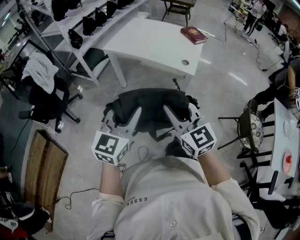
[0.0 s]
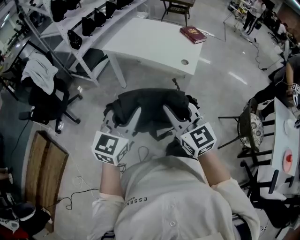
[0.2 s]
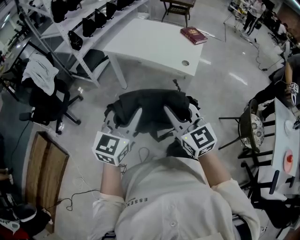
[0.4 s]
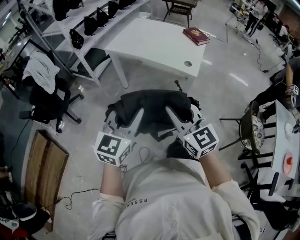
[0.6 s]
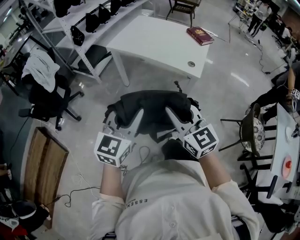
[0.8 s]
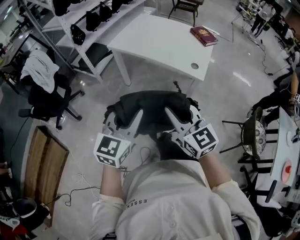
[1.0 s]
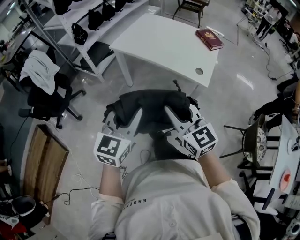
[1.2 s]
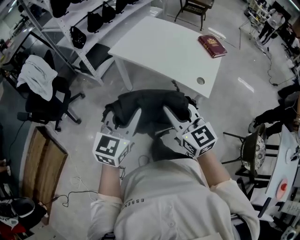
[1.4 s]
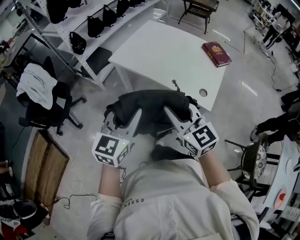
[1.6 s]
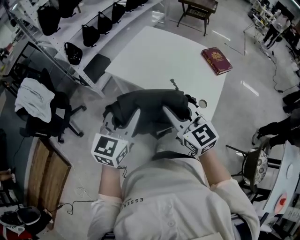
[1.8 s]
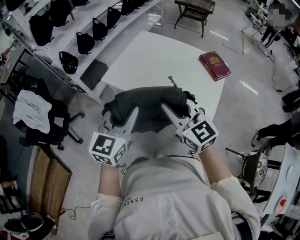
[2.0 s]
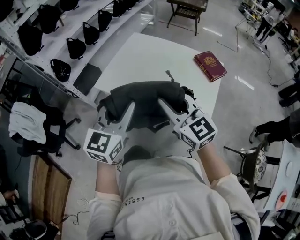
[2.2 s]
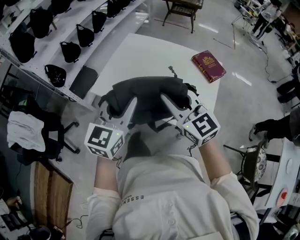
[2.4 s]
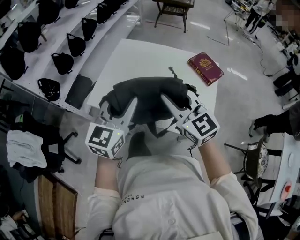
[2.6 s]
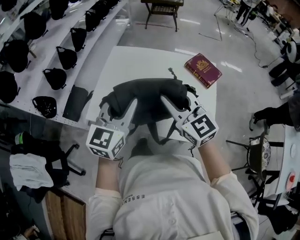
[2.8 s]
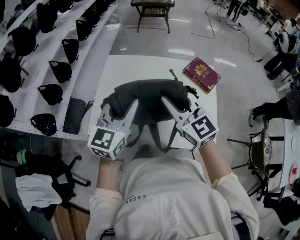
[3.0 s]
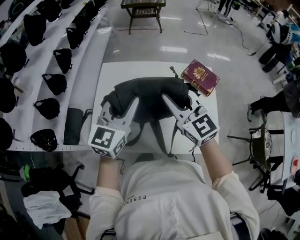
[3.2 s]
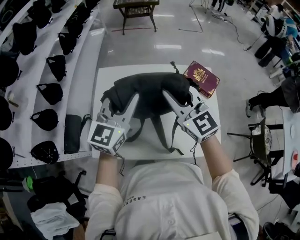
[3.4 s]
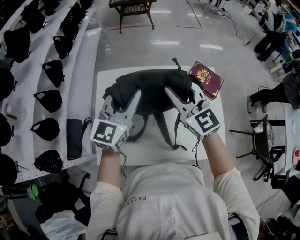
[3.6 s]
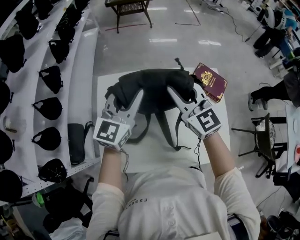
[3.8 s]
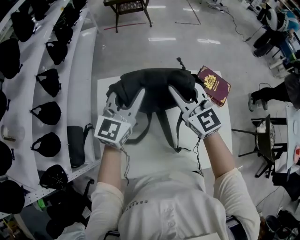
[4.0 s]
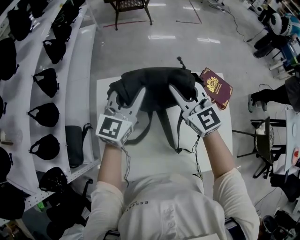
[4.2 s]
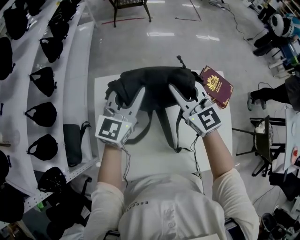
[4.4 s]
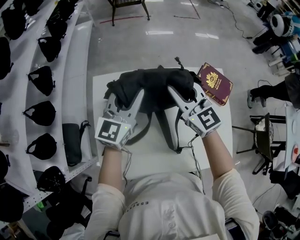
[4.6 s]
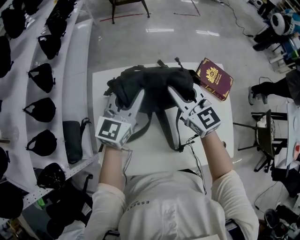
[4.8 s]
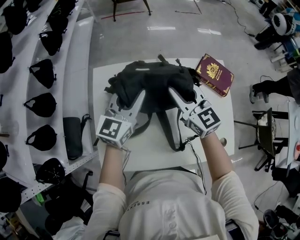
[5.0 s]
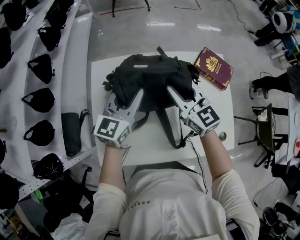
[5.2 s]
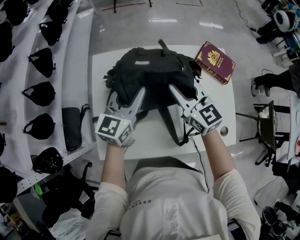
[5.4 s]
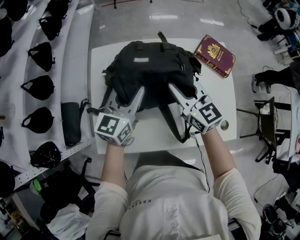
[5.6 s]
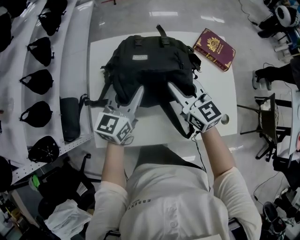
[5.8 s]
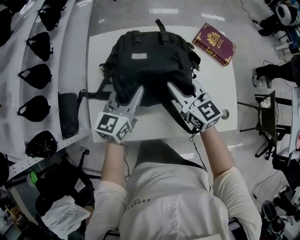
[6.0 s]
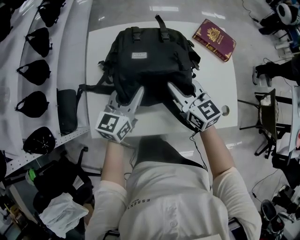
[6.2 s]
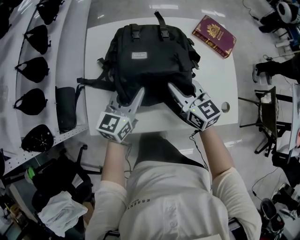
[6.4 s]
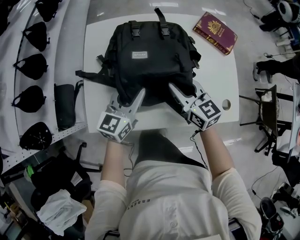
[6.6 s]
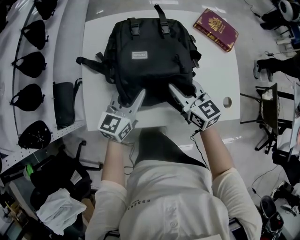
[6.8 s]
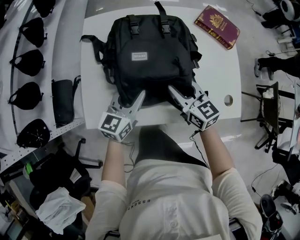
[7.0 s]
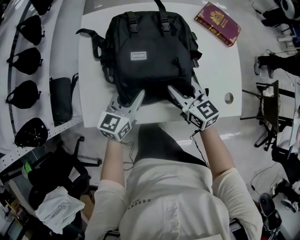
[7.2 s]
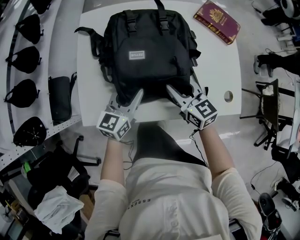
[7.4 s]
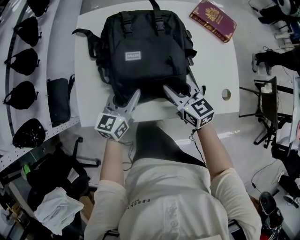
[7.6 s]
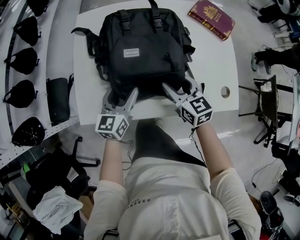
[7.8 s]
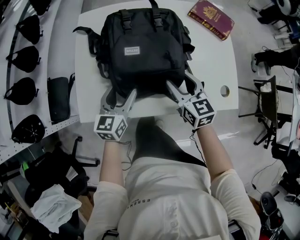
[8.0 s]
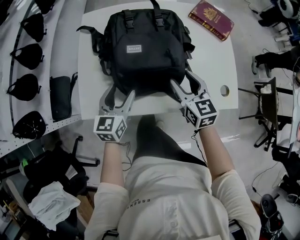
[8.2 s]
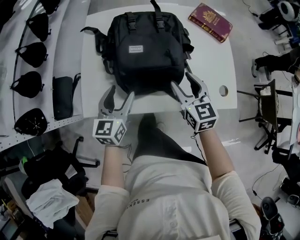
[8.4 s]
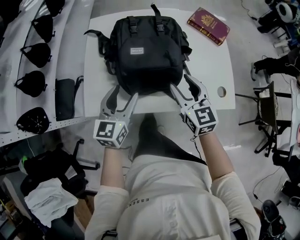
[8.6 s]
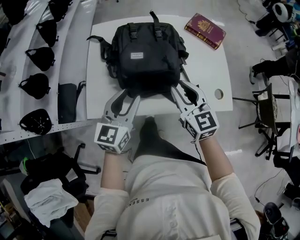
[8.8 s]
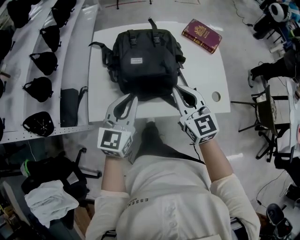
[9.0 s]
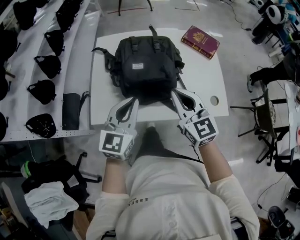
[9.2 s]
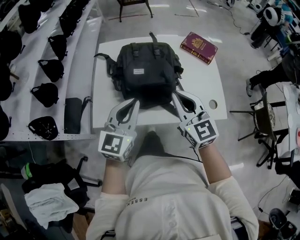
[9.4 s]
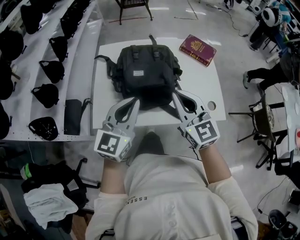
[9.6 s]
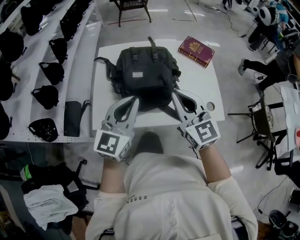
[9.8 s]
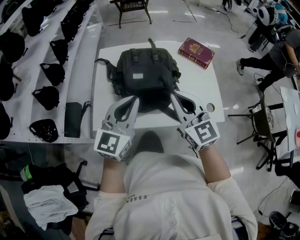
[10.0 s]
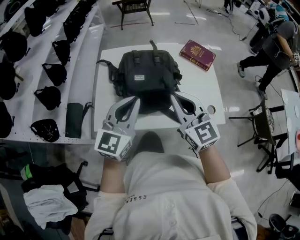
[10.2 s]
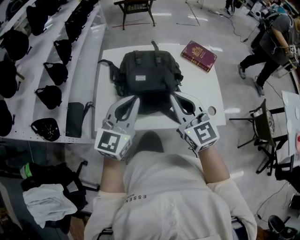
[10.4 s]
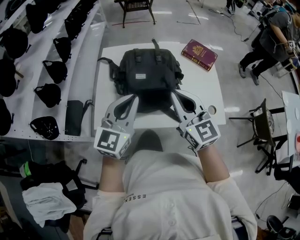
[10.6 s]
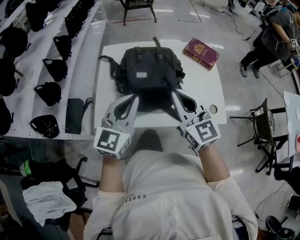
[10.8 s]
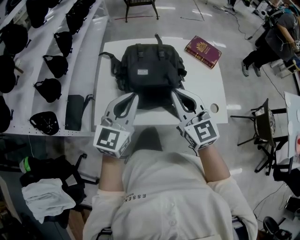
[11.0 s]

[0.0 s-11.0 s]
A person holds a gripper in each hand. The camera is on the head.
0.0 to 1.6 s: The two grippers go about 25 cm forward.
1.6 to 3.2 s: Both grippers are carried approximately 50 cm. The left gripper changes its angle by about 30 degrees, while the right gripper rotates roughly 30 degrees.
3.2 to 4.8 s: Both grippers travel together forward and downward, approximately 20 cm.
4.8 to 6.2 s: Both grippers travel together backward and downward, approximately 20 cm.
6.2 to 7.8 s: Both grippers move downward and backward, roughly 10 cm. The left gripper opens its fingers. The right gripper opens its fingers.
7.8 to 9.4 s: Both grippers move upward and backward, some 20 cm. The right gripper turns by approximately 20 degrees, and closes up. Meanwhile the left gripper swivels about 20 degrees, and closes up.
9.4 to 11.0 s: The grippers stay close to where they were, moving slightly.

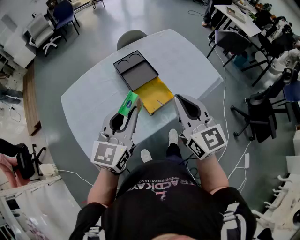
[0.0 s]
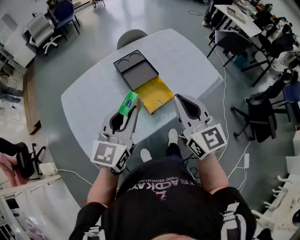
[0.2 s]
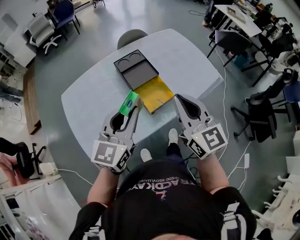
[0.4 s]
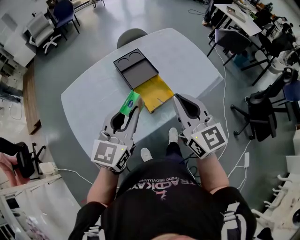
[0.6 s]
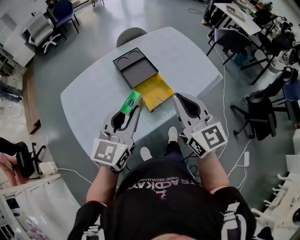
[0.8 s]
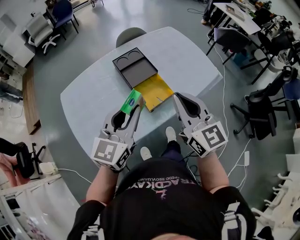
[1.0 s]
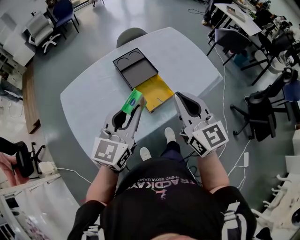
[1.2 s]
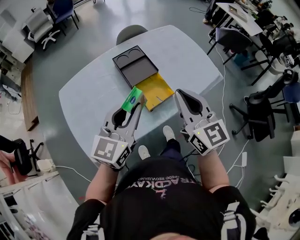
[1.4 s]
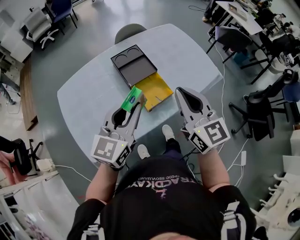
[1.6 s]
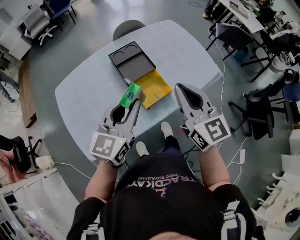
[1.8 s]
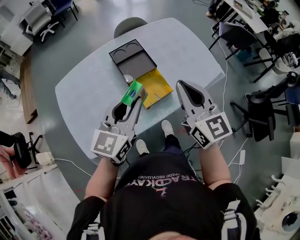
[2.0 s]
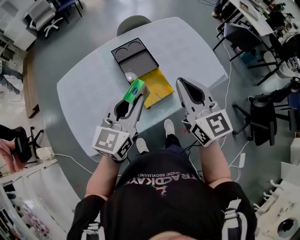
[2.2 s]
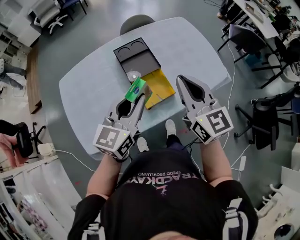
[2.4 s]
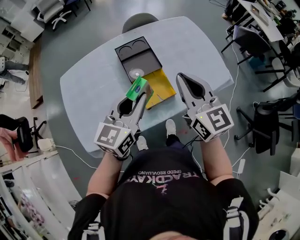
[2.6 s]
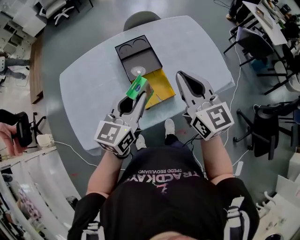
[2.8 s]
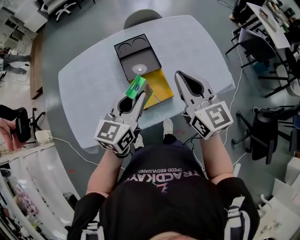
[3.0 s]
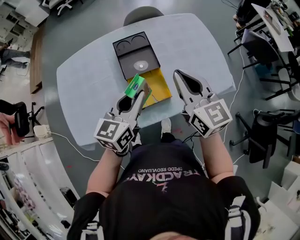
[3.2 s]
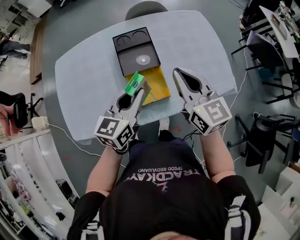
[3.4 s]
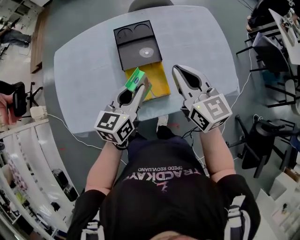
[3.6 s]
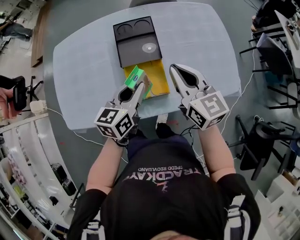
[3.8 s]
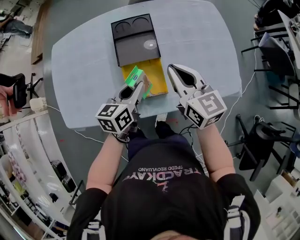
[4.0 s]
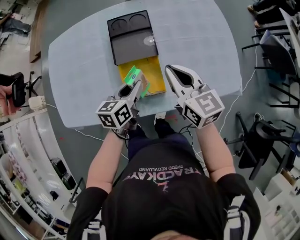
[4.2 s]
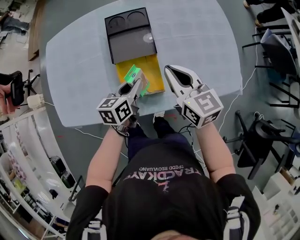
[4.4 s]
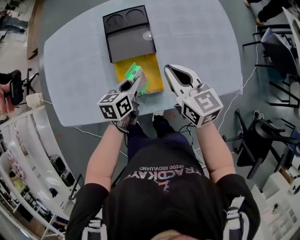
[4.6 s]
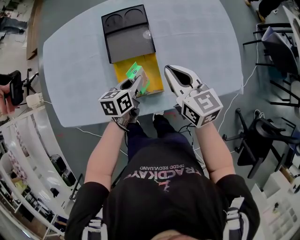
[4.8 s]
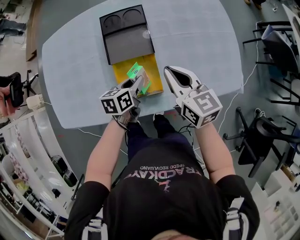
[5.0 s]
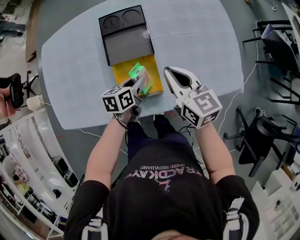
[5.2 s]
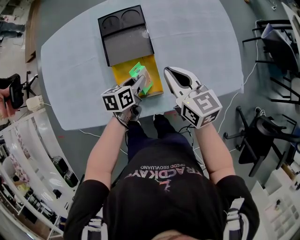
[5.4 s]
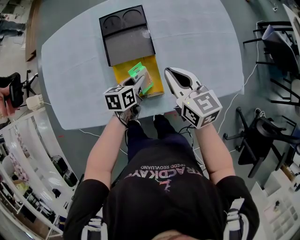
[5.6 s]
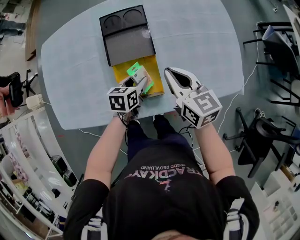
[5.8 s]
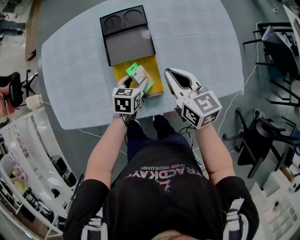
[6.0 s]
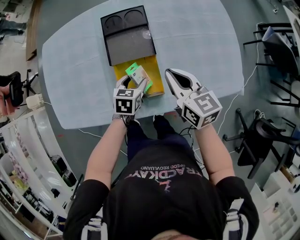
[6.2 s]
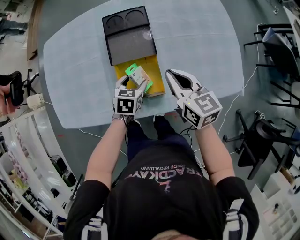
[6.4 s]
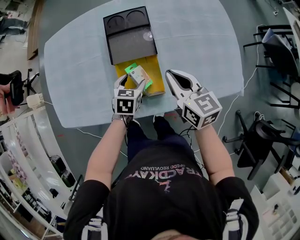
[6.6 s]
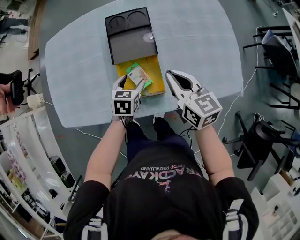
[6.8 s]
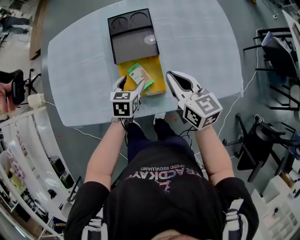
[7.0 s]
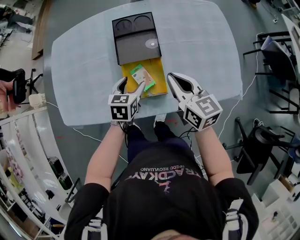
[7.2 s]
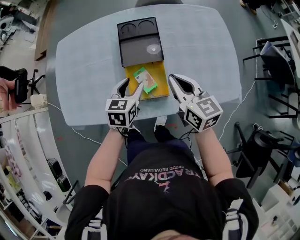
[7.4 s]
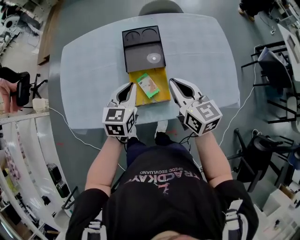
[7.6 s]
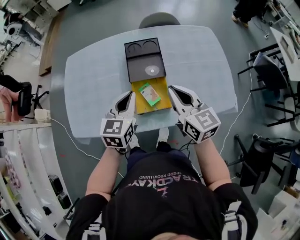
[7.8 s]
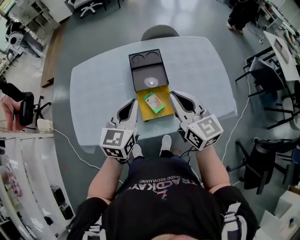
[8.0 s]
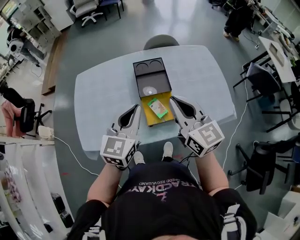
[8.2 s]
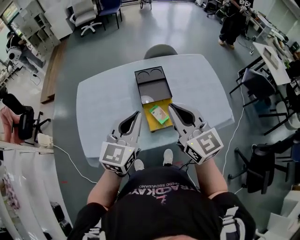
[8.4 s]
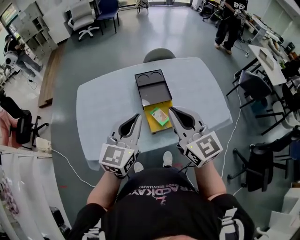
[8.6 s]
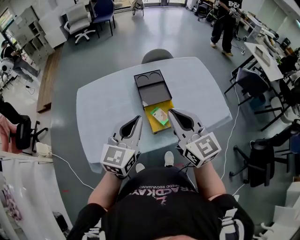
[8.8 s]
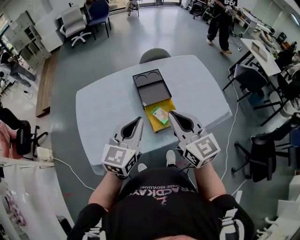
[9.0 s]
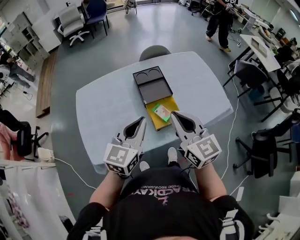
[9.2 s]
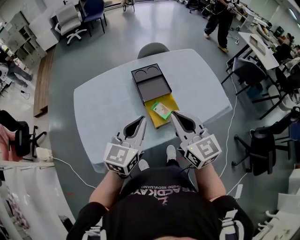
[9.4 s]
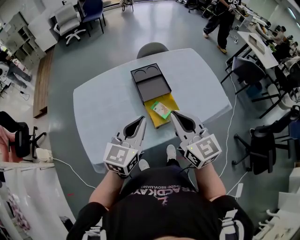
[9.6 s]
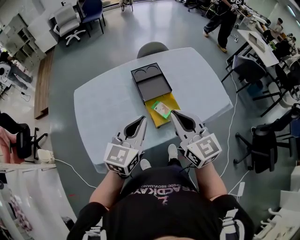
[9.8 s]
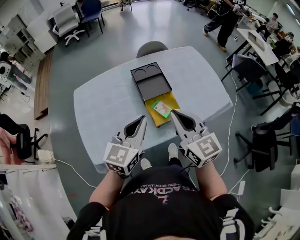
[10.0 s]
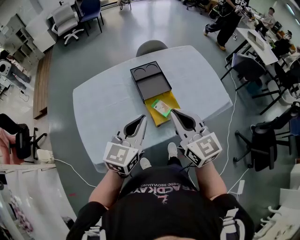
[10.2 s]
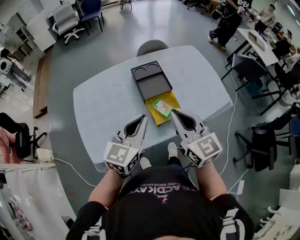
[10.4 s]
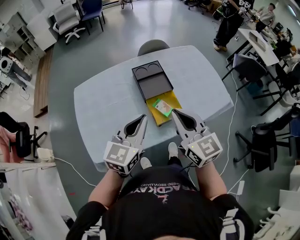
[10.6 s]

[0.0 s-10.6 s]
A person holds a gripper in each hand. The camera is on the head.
0.0 to 1.6 s: The grippers make only small movements.
1.6 to 3.0 s: The right gripper goes approximately 10 cm forward. The left gripper shifts about 10 cm forward, to the right and downward.
3.0 to 4.6 s: The right gripper is displaced downward and forward by approximately 20 cm, and changes its angle by approximately 20 degrees. The left gripper heads downward, covering about 25 cm, and rotates approximately 40 degrees.
4.6 to 6.0 s: The left gripper is displaced downward by about 5 cm, rotates approximately 20 degrees, and opens.
6.0 to 7.6 s: The left gripper shifts approximately 20 cm upward, turns by approximately 20 degrees, and closes, while the right gripper moves upward, about 10 cm.
7.6 to 9.0 s: The left gripper shifts approximately 25 cm upward, backward and to the left, and swivels approximately 30 degrees. Meanwhile the right gripper is displaced upward, to the left and backward by about 25 cm, and swivels about 20 degrees.
9.0 to 10.6 s: The grippers move only a little.

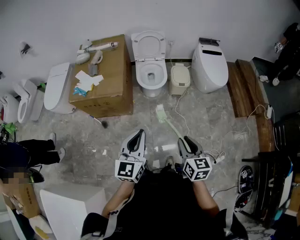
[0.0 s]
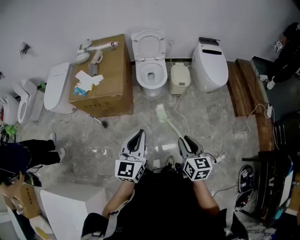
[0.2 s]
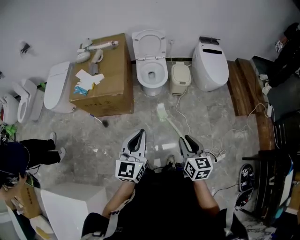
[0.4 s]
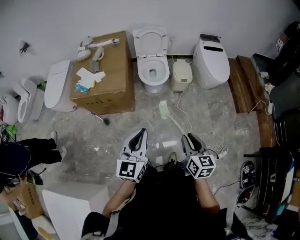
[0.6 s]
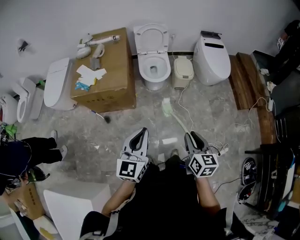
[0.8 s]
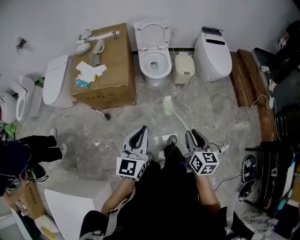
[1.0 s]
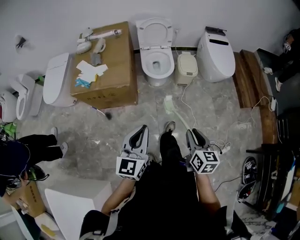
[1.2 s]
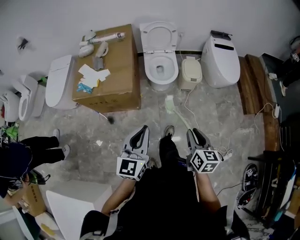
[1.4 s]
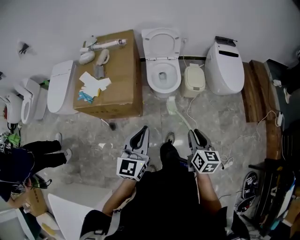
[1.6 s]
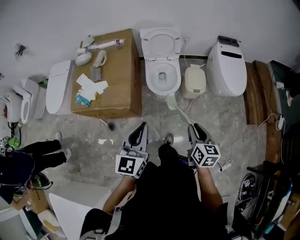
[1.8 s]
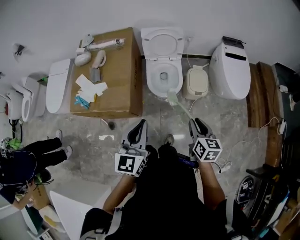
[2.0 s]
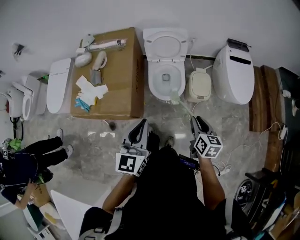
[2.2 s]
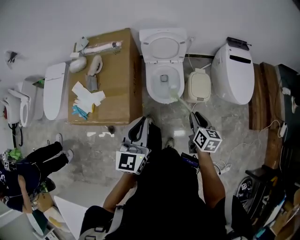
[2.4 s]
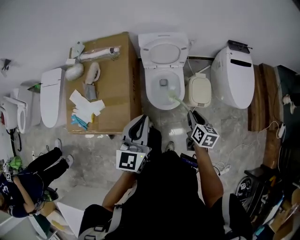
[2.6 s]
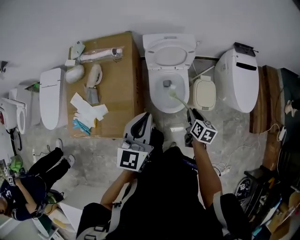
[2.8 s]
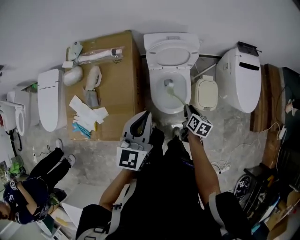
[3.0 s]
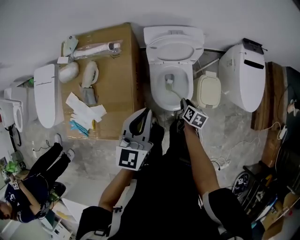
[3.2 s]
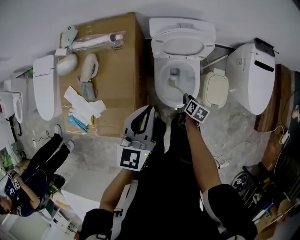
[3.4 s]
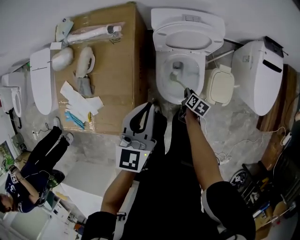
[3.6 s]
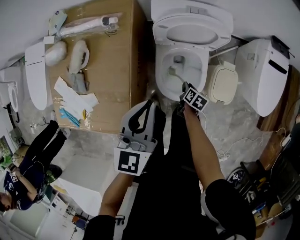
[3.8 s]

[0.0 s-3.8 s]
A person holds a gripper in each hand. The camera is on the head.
0.0 to 1.2 s: The left gripper shifts roughly 5 cm to the left. Meanwhile the right gripper changes place by some 5 cm.
1.2 to 2.6 s: The pair of grippers is taken forward, some 50 cm.
2.6 to 3.8 s: The left gripper heads forward and downward, covering approximately 25 cm, while the right gripper shifts roughly 40 cm downward and forward, and turns by about 30 degrees.
